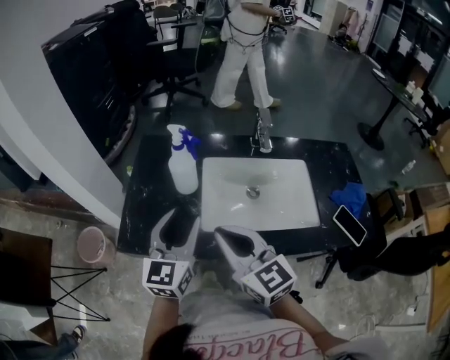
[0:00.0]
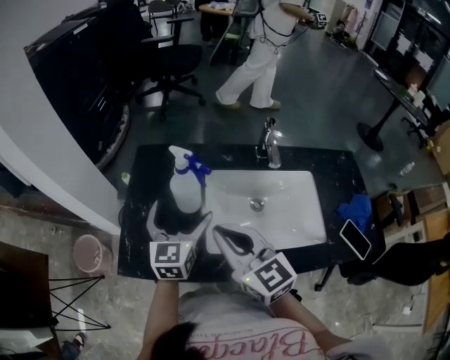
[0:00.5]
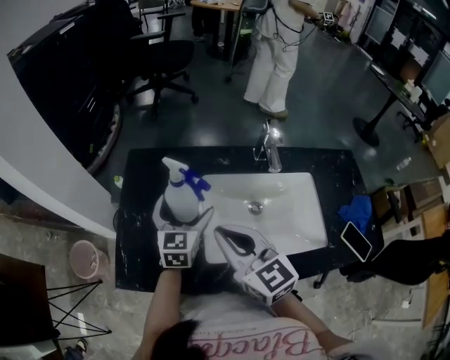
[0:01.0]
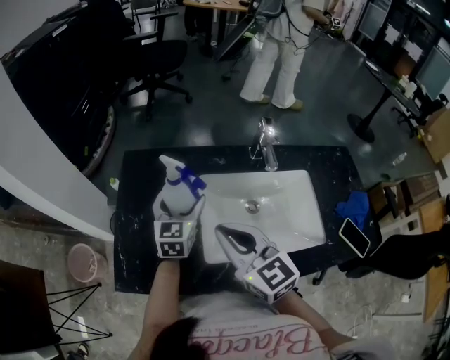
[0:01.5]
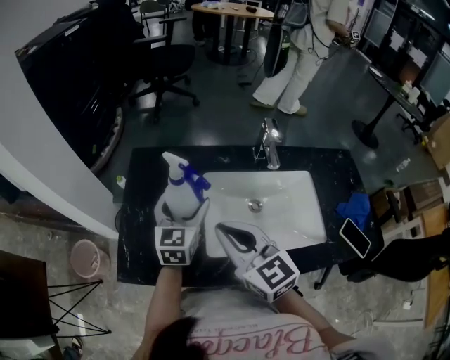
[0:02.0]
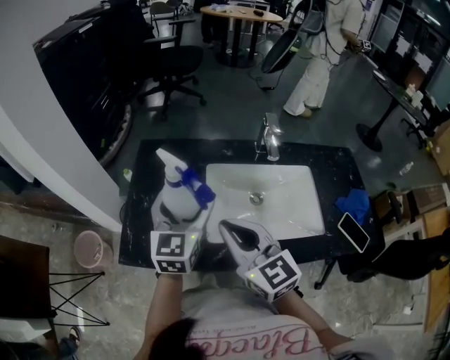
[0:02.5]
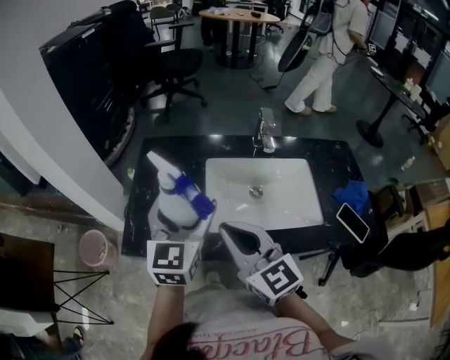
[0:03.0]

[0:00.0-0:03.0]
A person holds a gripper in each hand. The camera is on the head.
0:00.0 to 0:01.5: The right gripper travels forward by about 10 cm, while the left gripper moves forward and downward, approximately 20 cm, and opens its fingers.
0:01.5 to 0:03.0: The left gripper travels backward and upward by approximately 20 cm. The right gripper is displaced backward by roughly 10 cm.

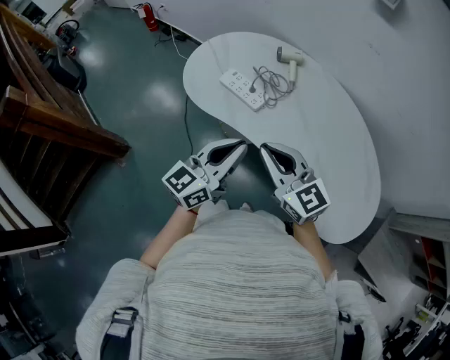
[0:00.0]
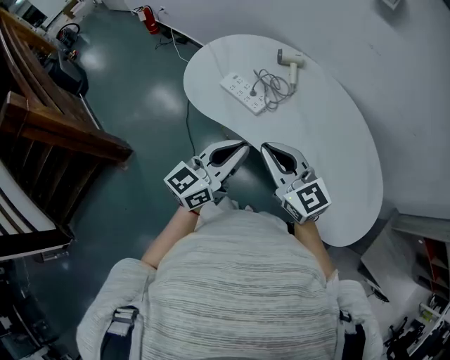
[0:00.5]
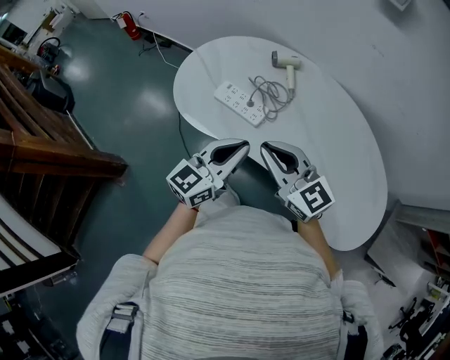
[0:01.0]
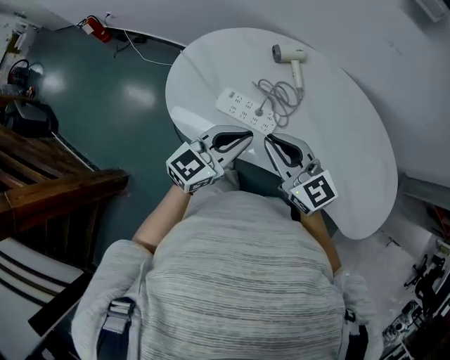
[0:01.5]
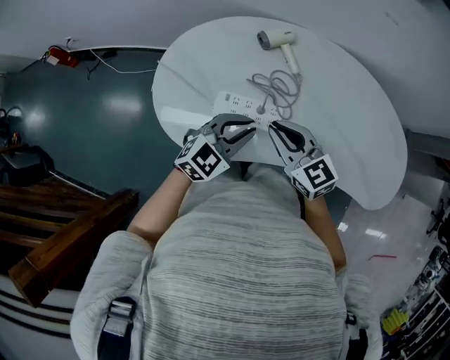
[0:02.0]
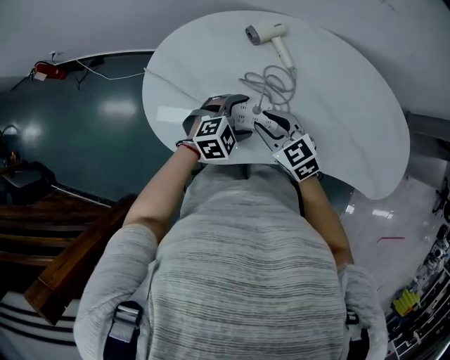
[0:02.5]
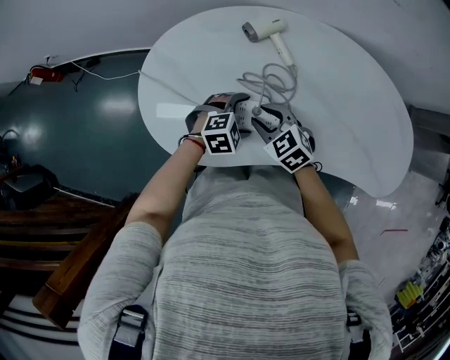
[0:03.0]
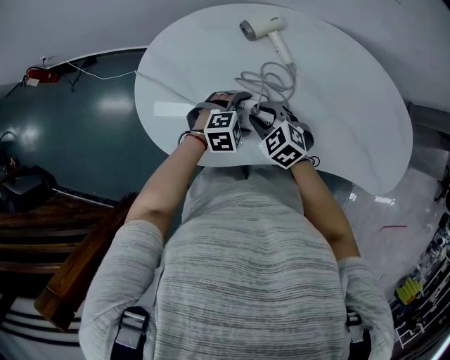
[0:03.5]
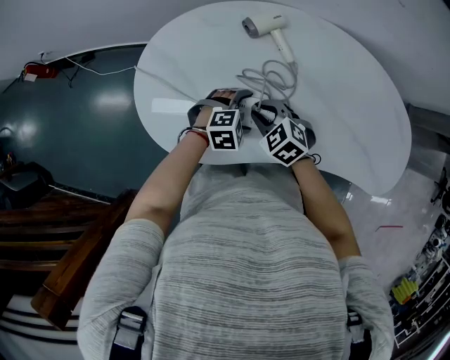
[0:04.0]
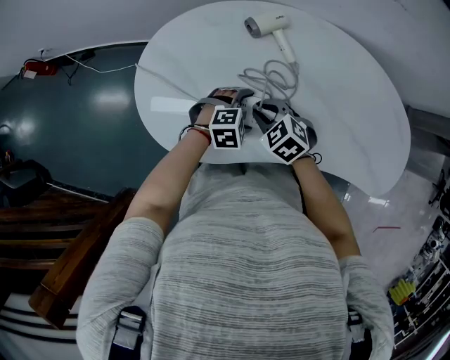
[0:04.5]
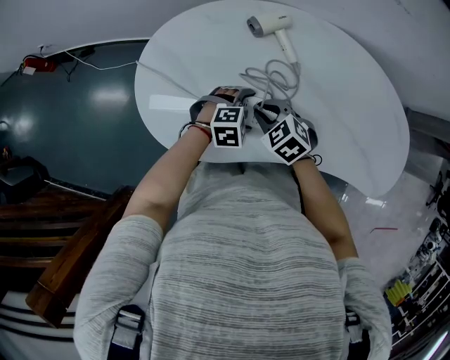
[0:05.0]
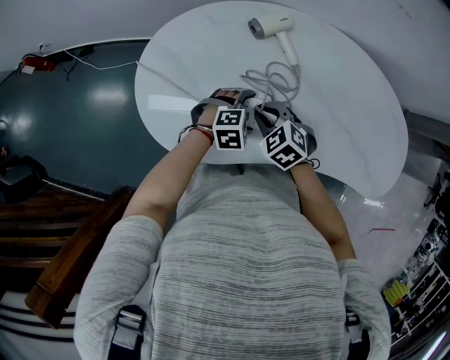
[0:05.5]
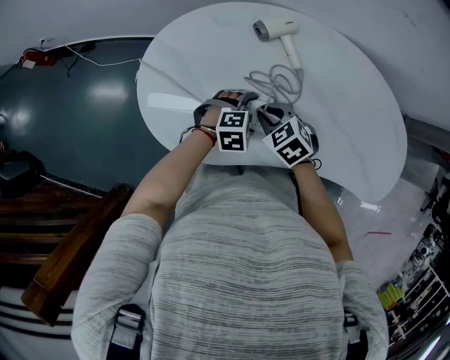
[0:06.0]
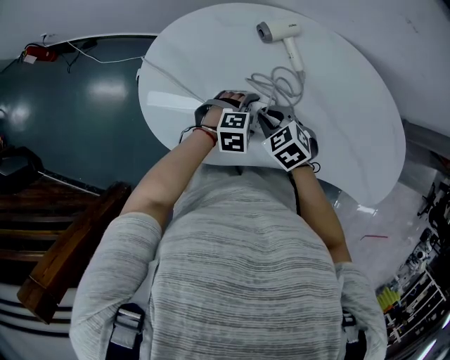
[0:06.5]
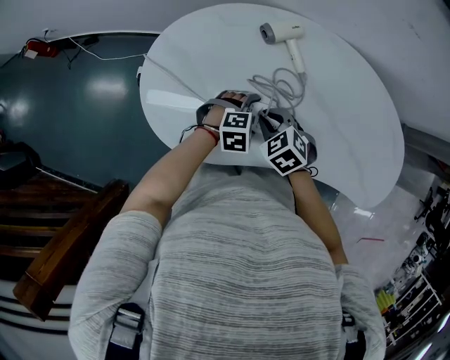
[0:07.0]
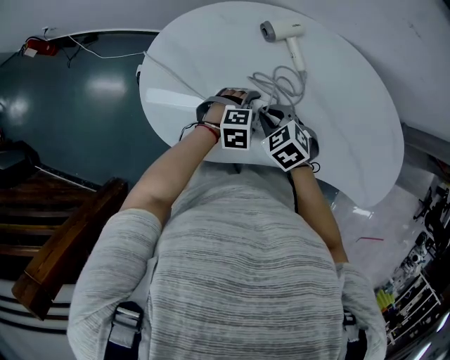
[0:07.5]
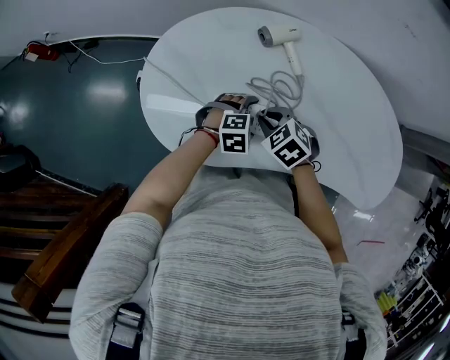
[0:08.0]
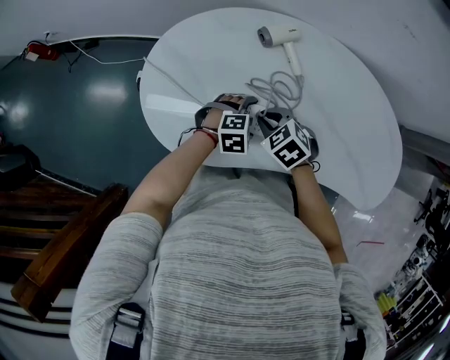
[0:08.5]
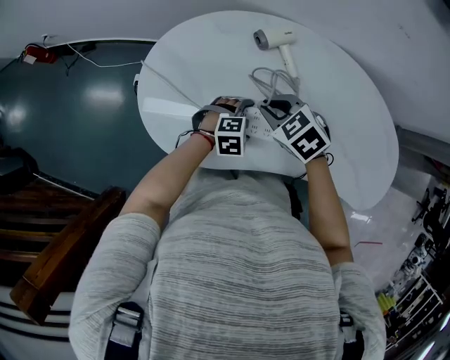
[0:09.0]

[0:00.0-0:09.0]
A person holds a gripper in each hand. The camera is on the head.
0:00.0 to 0:02.0: The left gripper changes place by about 30 cm, and tips its fingers downward by some 30 degrees; the right gripper shifts by approximately 30 cm, and changes its angle by some 30 degrees.
0:02.0 to 0:04.5: The two grippers go roughly 15 cm downward. The left gripper angles its fingers downward, by approximately 30 degrees, and opens; the right gripper angles its fingers downward, by some 40 degrees.
0:04.5 to 0:07.0: The grippers make only small movements.
0:07.0 to 0:09.0: The right gripper moves upward, roughly 5 cm.

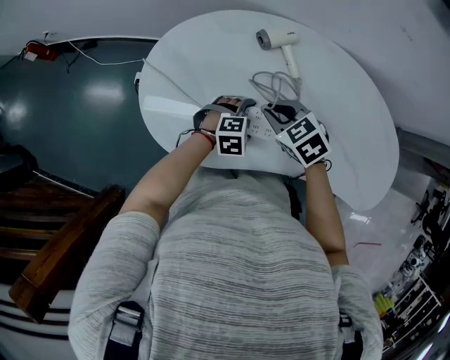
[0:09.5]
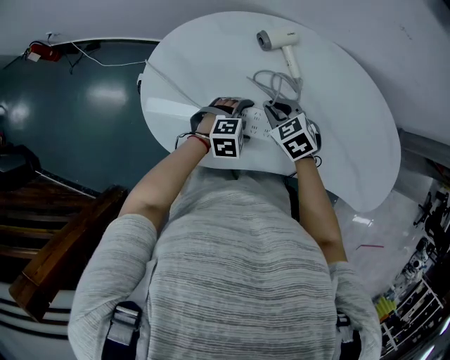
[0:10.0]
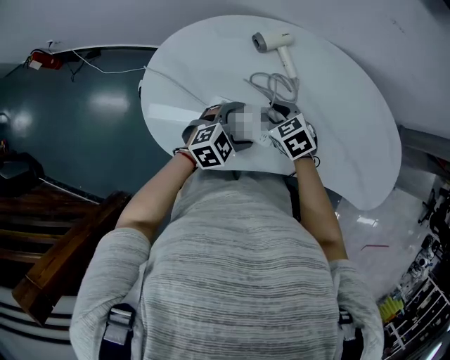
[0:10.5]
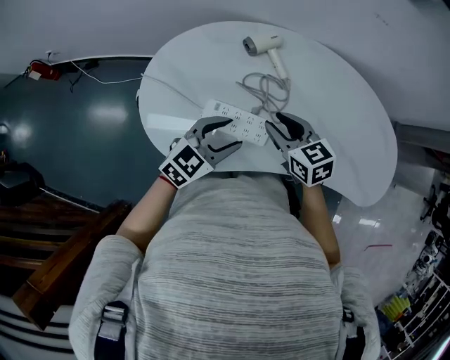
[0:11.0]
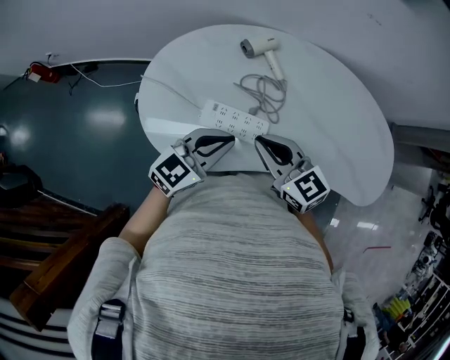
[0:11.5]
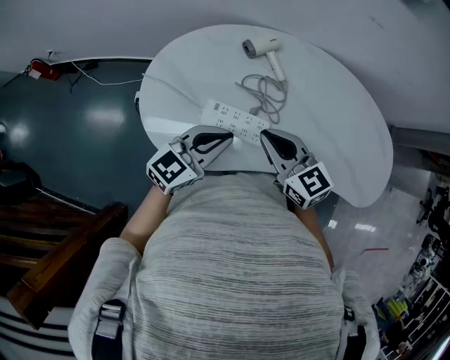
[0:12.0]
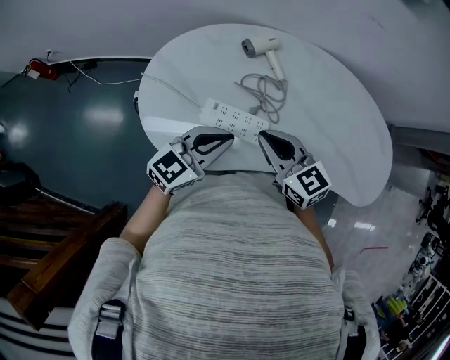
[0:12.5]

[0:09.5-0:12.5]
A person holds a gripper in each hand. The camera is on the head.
0:09.5 to 0:11.0: The left gripper moves upward, roughly 15 cm, tilts its fingers some 30 degrees upward, and closes. Meanwhile the right gripper moves approximately 5 cm, swivels some 30 degrees, and opens its fingers.
0:11.0 to 0:12.5: The two grippers go roughly 5 cm upward. The right gripper closes; the left gripper closes.

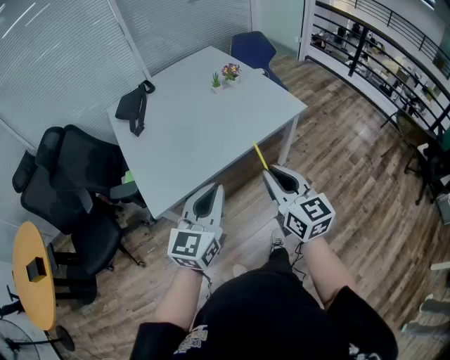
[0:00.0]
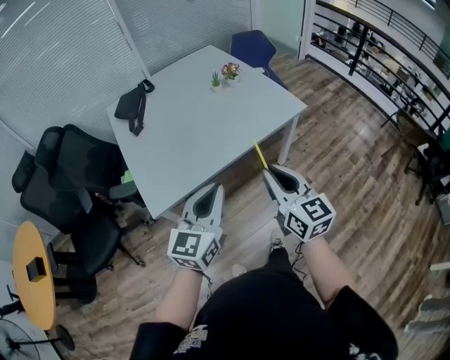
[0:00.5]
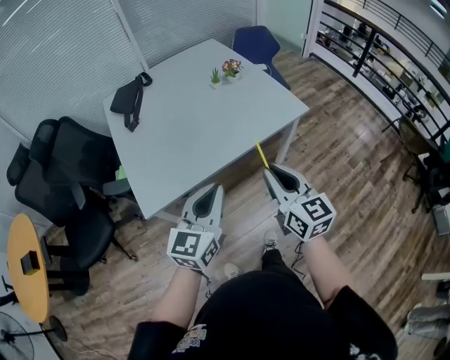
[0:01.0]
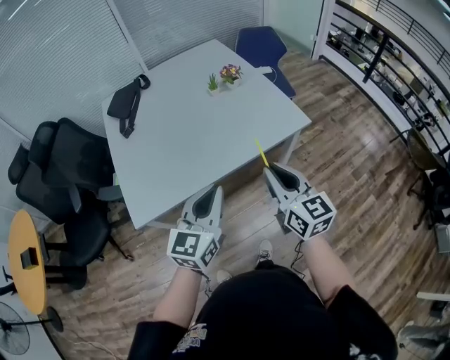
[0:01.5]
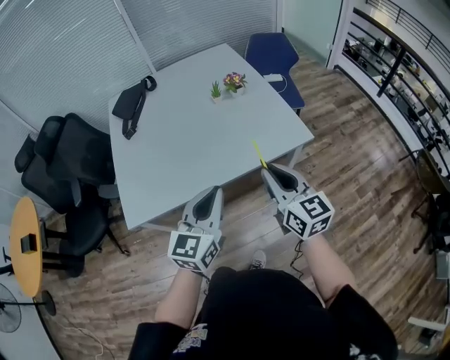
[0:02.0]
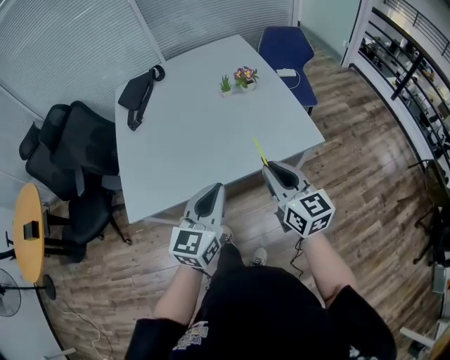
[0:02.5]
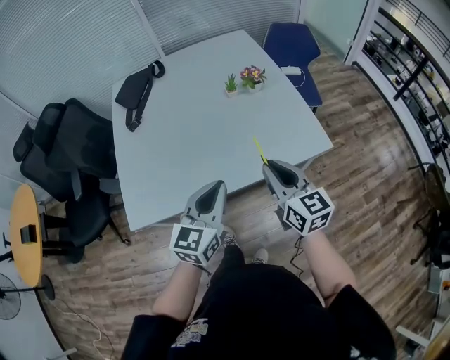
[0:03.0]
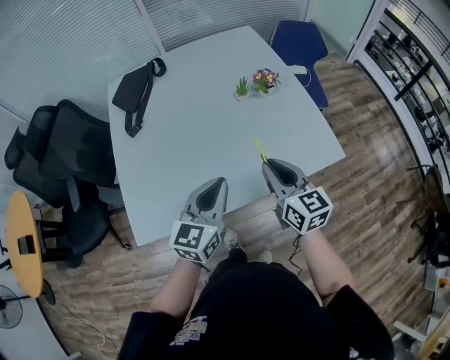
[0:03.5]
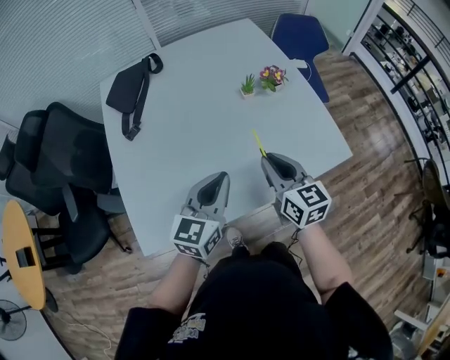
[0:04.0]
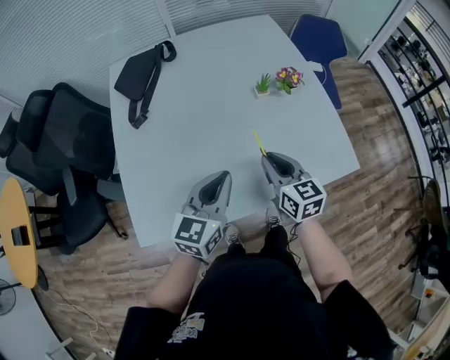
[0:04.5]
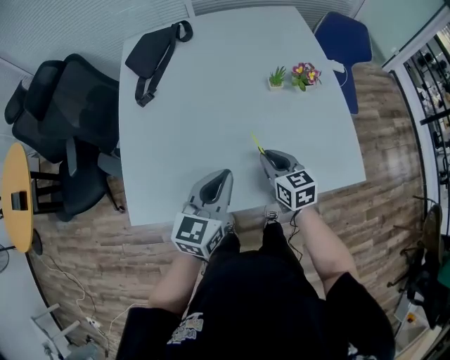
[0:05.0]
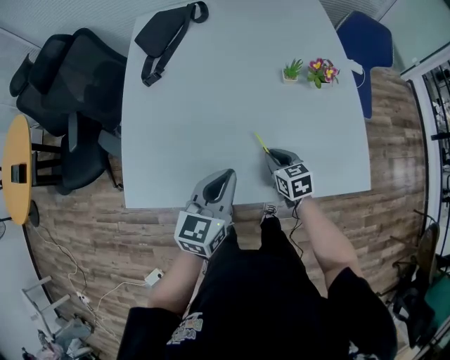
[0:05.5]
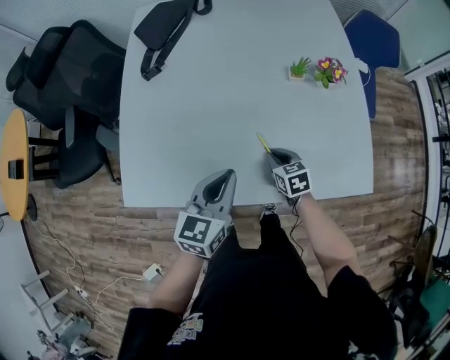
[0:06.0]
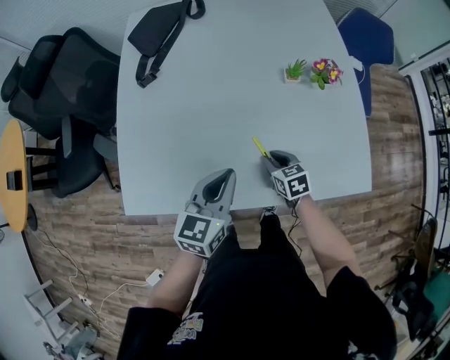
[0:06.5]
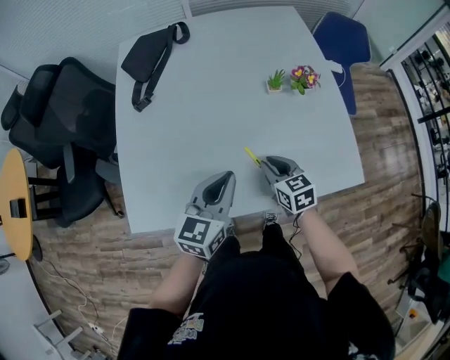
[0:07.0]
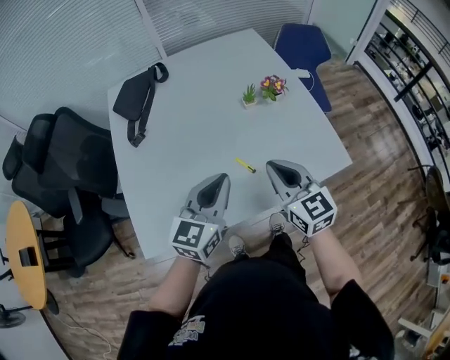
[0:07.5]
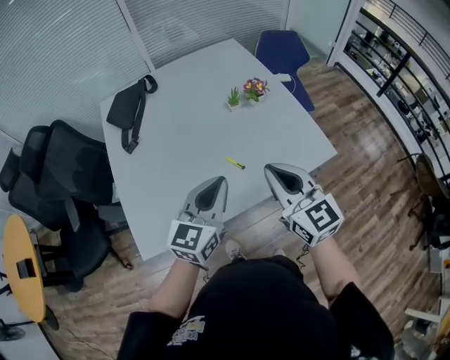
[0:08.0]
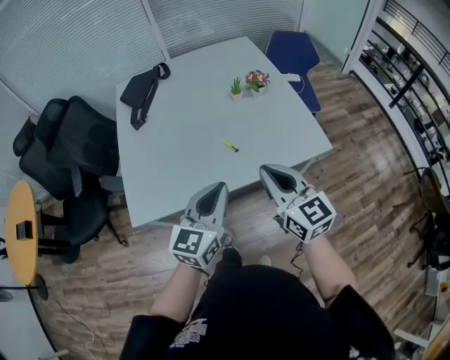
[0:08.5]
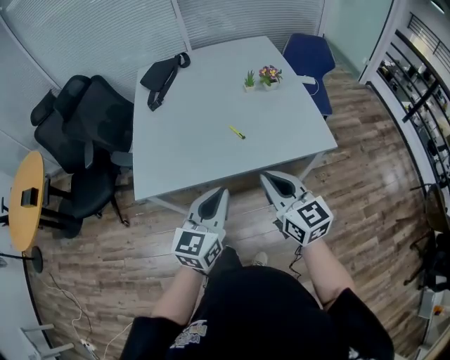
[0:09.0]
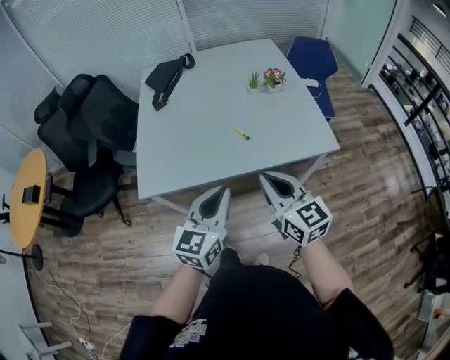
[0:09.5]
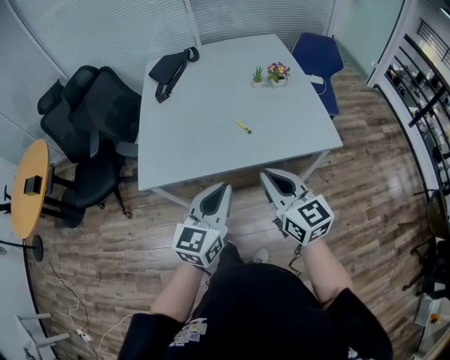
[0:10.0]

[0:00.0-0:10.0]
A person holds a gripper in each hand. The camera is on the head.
0:00.0 to 0:02.0: Both grippers move forward and to the right, about 20 cm.
0:02.0 to 0:04.0: The two grippers go roughly 25 cm forward and to the left.
0:04.0 to 0:06.0: The left gripper goes about 10 cm downward, and swivels some 20 degrees. The right gripper shifts some 25 cm downward, and points its fingers about 30 degrees further downward.
0:06.0 to 0:08.0: The left gripper is displaced upward and backward by some 15 cm, and changes its angle by approximately 30 degrees. The right gripper moves upward, some 35 cm, and points its fingers some 40 degrees further upward.
0:08.0 to 0:10.0: The grippers both shift backward by roughly 20 cm.

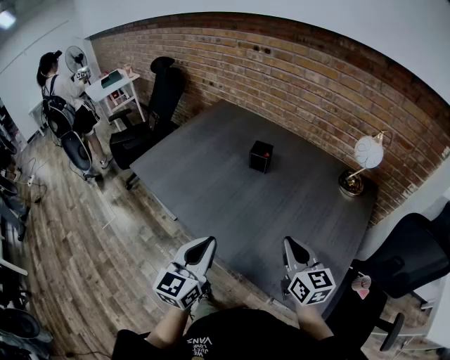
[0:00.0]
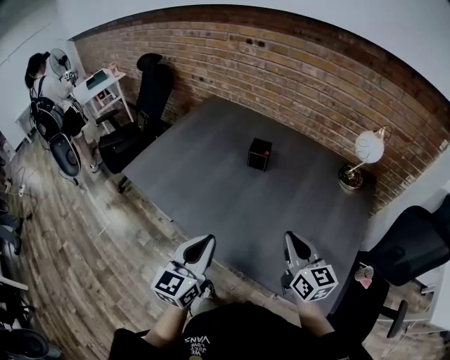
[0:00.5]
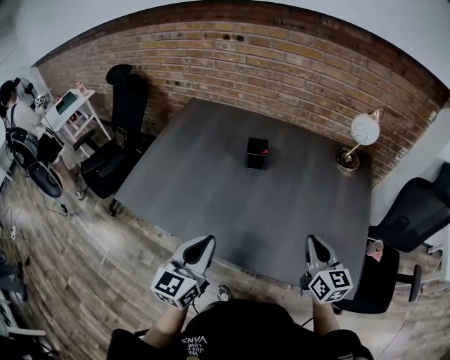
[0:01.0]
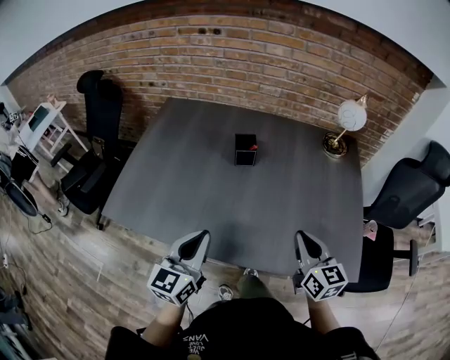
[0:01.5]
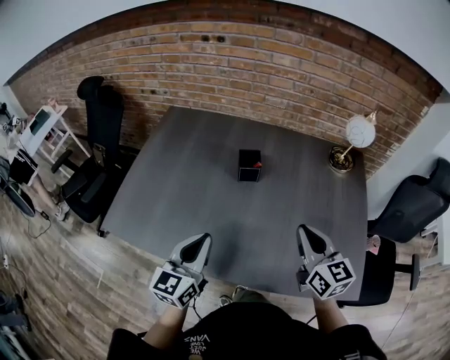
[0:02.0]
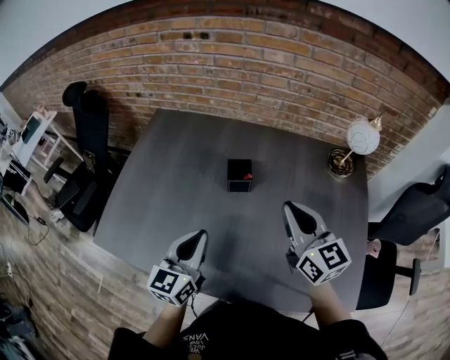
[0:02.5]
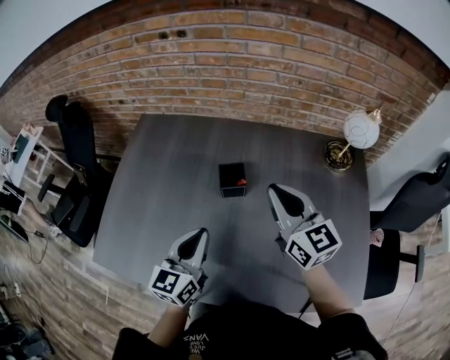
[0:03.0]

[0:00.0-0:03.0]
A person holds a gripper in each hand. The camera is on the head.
0:00.0 to 0:01.5: The left gripper shifts about 20 cm to the left and forward, and changes its angle by some 20 degrees, while the right gripper shifts roughly 10 cm to the left, and turns by approximately 30 degrees.
0:01.5 to 0:03.0: The two grippers go approximately 25 cm forward.
